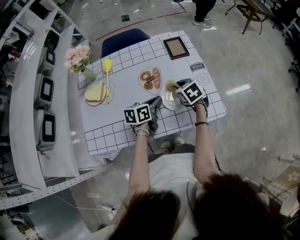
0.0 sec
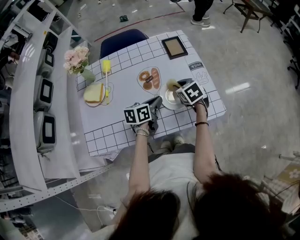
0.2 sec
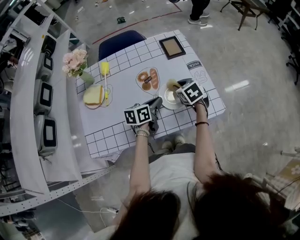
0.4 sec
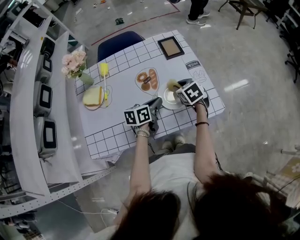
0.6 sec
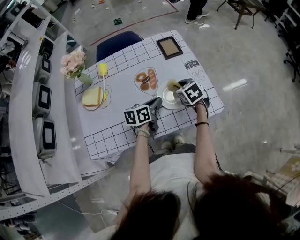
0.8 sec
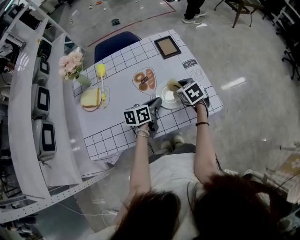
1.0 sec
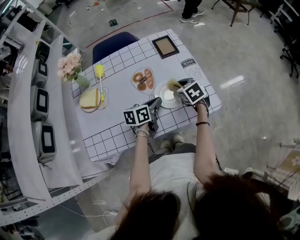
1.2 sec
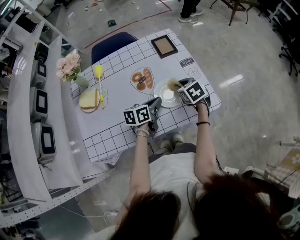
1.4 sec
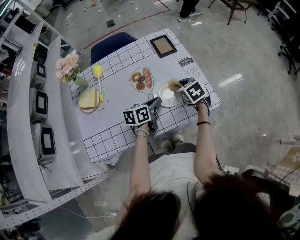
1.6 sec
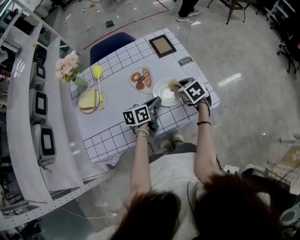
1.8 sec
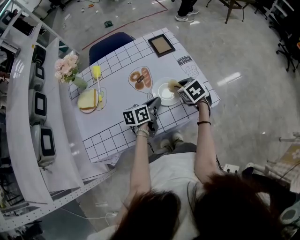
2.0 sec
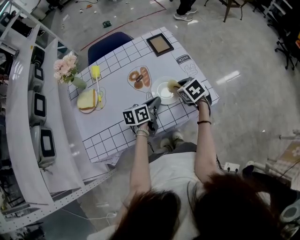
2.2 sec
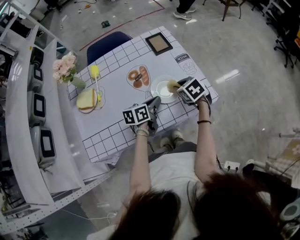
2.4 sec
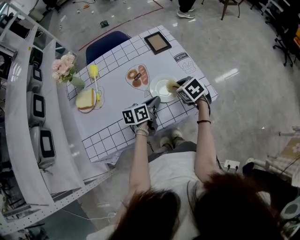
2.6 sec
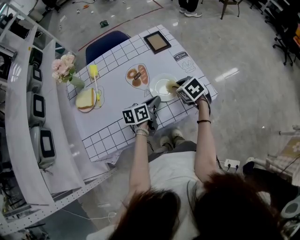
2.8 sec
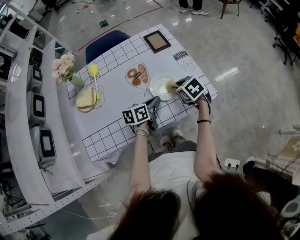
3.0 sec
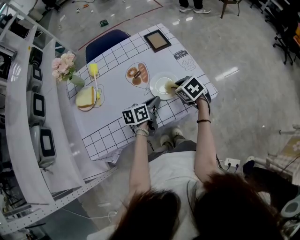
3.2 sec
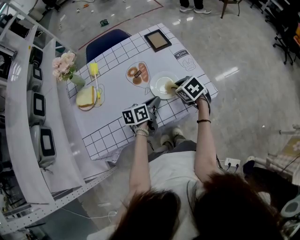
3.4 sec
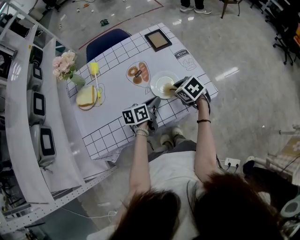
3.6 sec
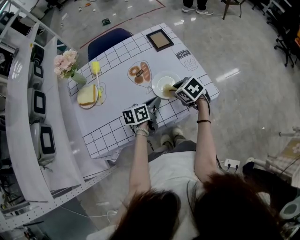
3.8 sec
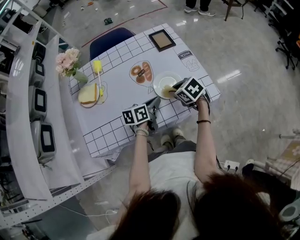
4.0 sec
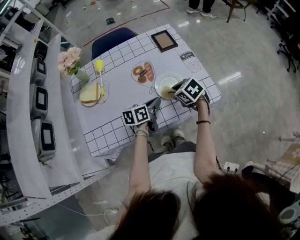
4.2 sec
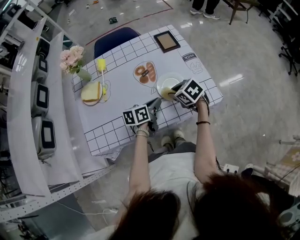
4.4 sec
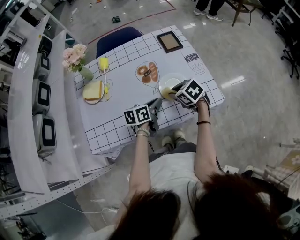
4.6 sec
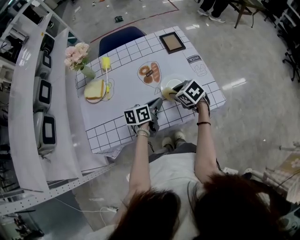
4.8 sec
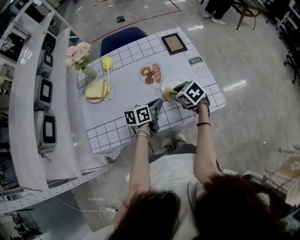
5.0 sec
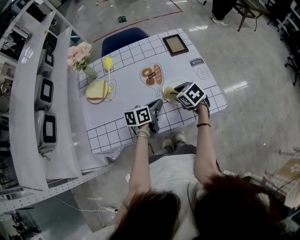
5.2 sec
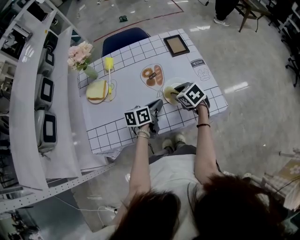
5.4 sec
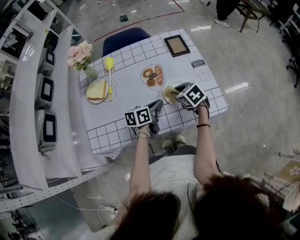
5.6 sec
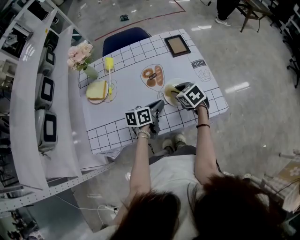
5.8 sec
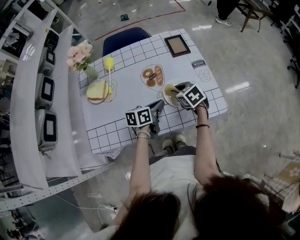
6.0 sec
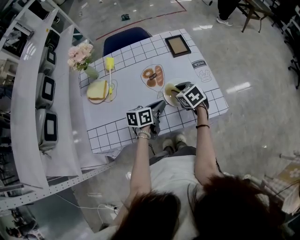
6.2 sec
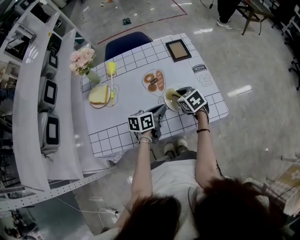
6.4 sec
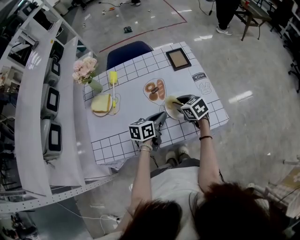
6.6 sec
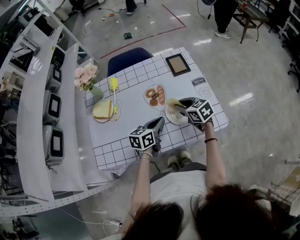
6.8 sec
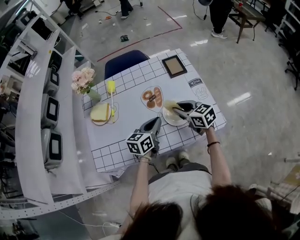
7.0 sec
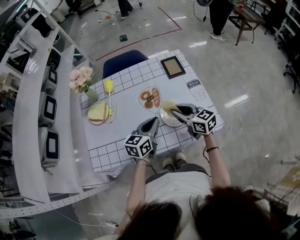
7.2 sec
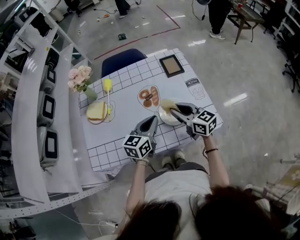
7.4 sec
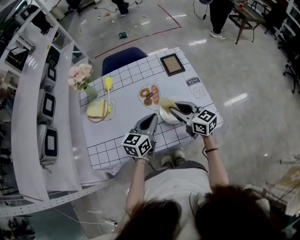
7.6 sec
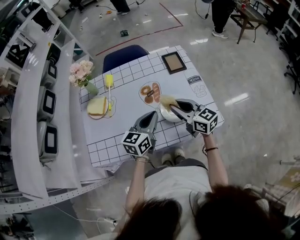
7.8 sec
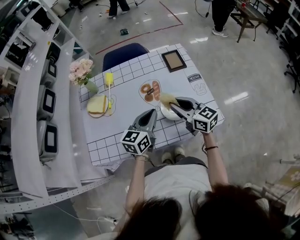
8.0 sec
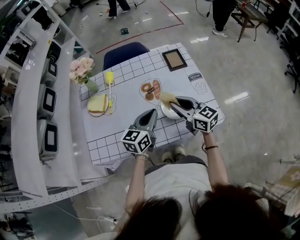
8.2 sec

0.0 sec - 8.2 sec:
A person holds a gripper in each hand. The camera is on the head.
0.0 sec - 1.6 sec: The right gripper changes place by some 5 cm.
1.6 sec - 3.2 sec: The right gripper moves backward, approximately 5 cm.
3.2 sec - 5.0 sec: The right gripper heads to the left, covering approximately 5 cm.
5.0 sec - 6.6 sec: There are only small adjustments of the grippers.
6.6 sec - 8.2 sec: The grippers both shift upward by some 10 cm. The left gripper changes its angle by about 30 degrees, while the right gripper points its fingers approximately 30 degrees further upward.

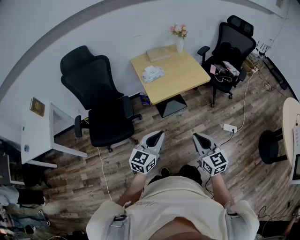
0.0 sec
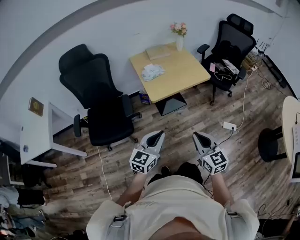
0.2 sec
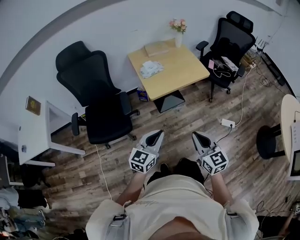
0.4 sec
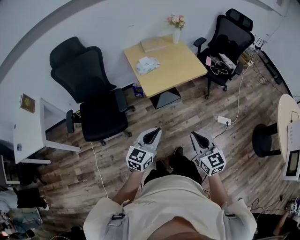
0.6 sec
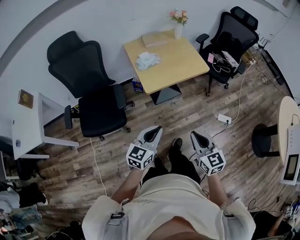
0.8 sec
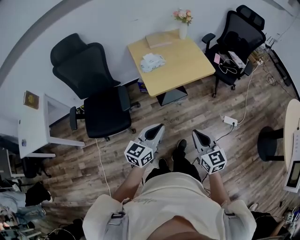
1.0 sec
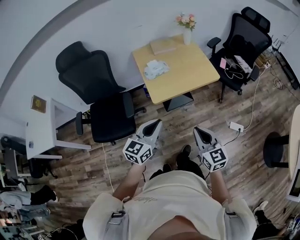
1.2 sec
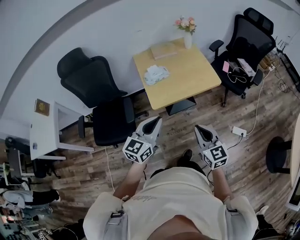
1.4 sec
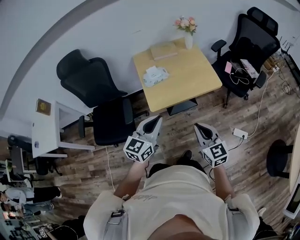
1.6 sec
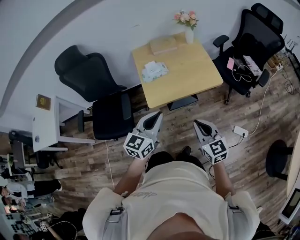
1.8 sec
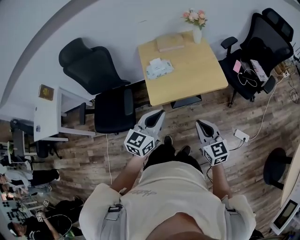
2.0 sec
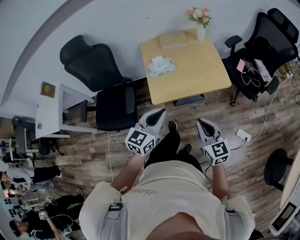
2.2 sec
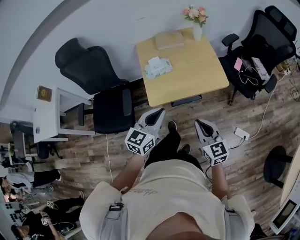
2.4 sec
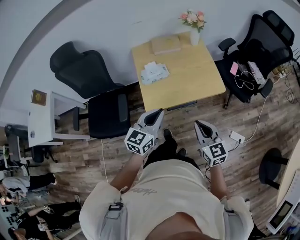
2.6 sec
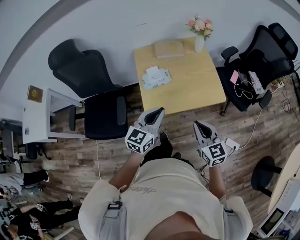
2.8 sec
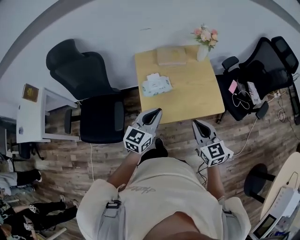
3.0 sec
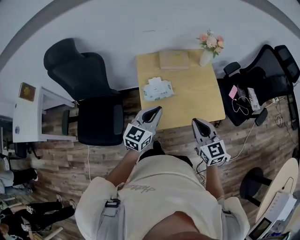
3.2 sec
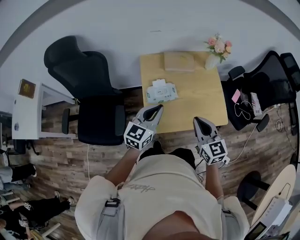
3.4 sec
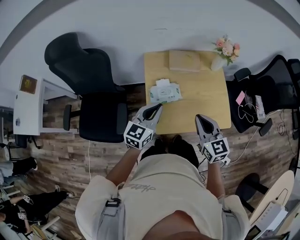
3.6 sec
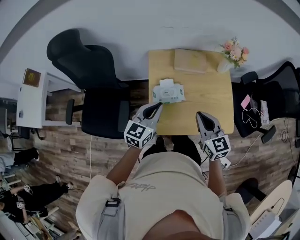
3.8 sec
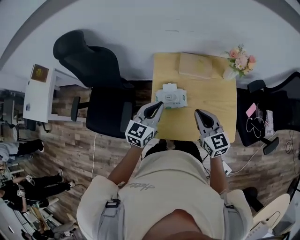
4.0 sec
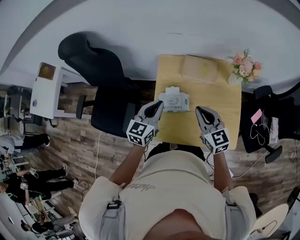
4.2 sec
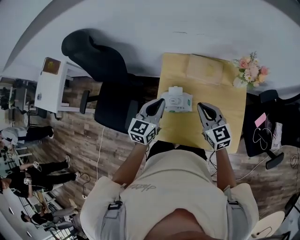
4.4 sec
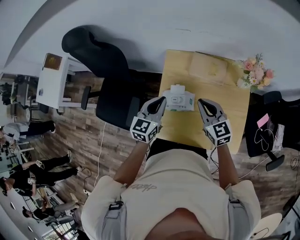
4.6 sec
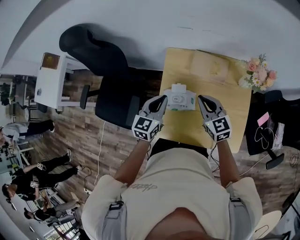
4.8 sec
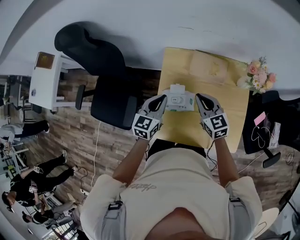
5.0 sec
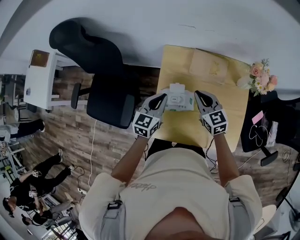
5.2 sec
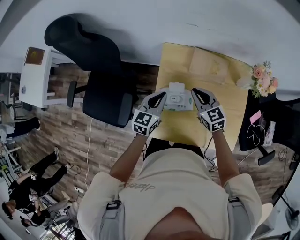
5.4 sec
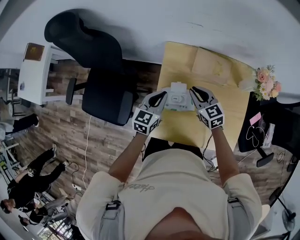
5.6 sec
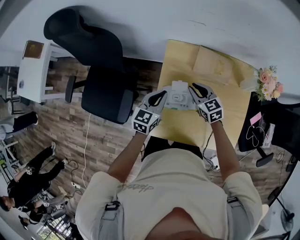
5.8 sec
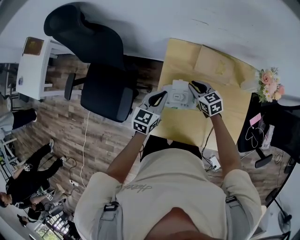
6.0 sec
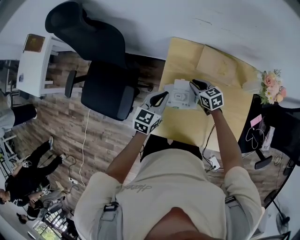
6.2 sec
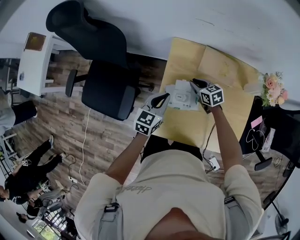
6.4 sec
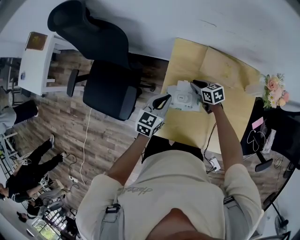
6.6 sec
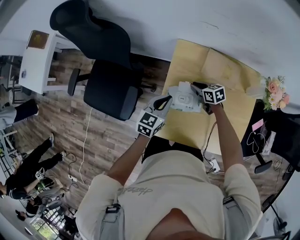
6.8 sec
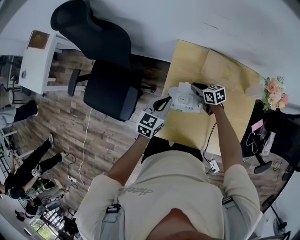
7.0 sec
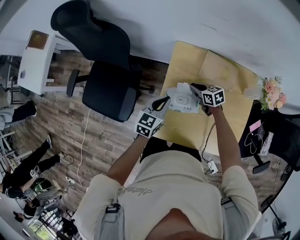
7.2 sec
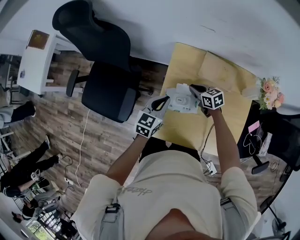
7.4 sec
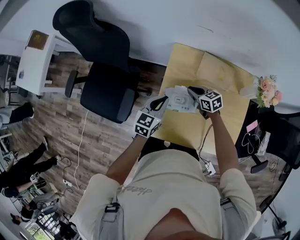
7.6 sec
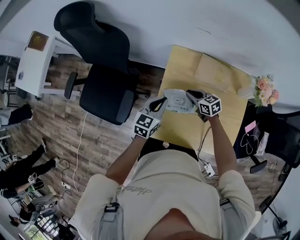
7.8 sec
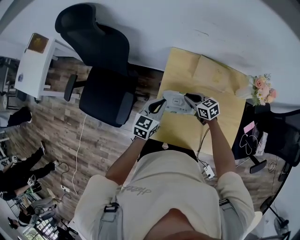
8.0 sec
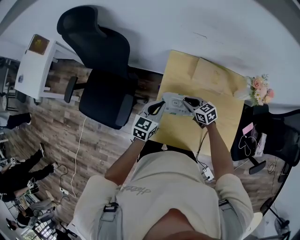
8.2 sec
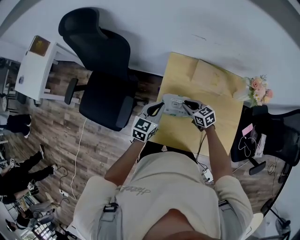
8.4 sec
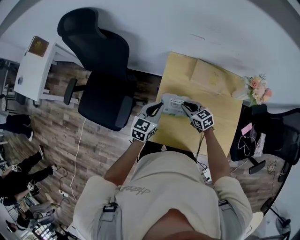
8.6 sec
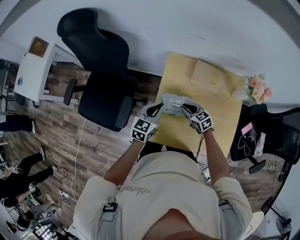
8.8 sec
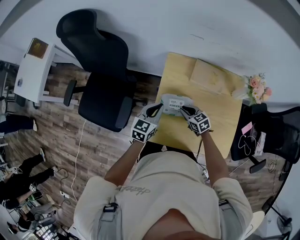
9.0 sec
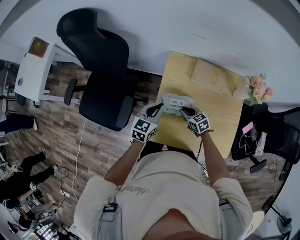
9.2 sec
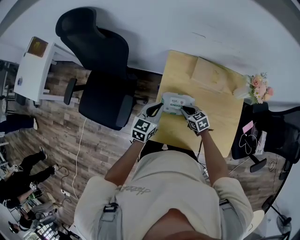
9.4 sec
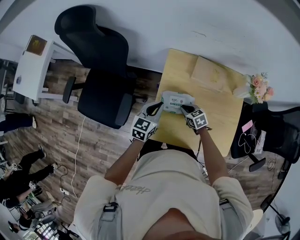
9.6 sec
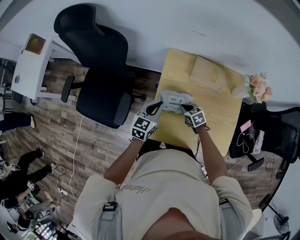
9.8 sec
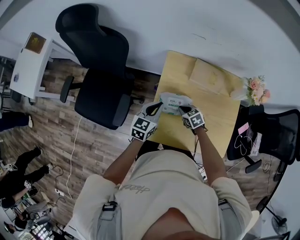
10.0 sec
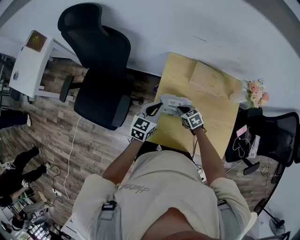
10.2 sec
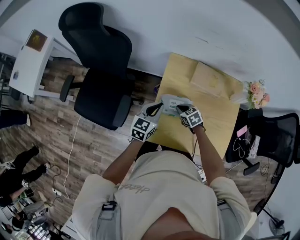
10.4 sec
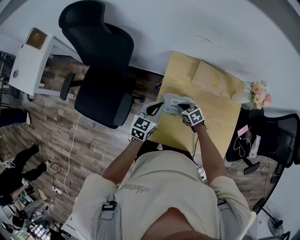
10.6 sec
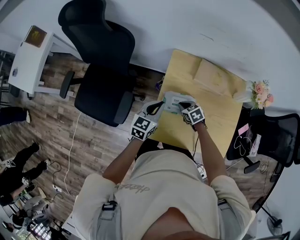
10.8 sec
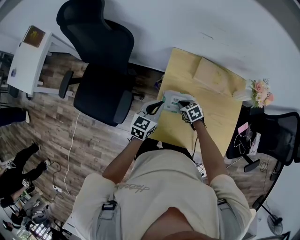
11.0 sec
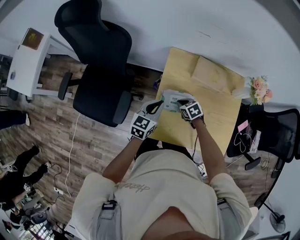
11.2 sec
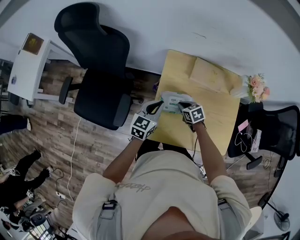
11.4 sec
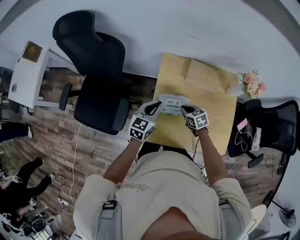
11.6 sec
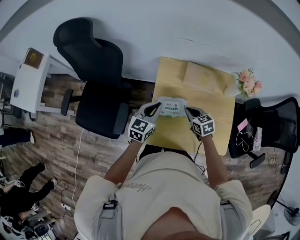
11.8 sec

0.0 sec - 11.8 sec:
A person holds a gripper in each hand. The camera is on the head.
0.0 sec - 1.4 sec: The two grippers go about 20 cm forward.
1.4 sec - 3.0 sec: The grippers both shift forward by approximately 25 cm.
3.0 sec - 4.4 sec: Both grippers move forward, approximately 25 cm. The right gripper swivels roughly 20 degrees, while the left gripper rotates roughly 30 degrees.
4.4 sec - 6.0 sec: The left gripper moves downward, some 10 cm, while the right gripper moves downward, forward and to the left, approximately 25 cm, and swivels some 20 degrees.
7.4 sec - 8.8 sec: The right gripper goes about 10 cm backward.
8.8 sec - 10.4 sec: There are only small adjustments of the grippers.
10.4 sec - 11.8 sec: The right gripper heads upward and to the right, covering approximately 10 cm.

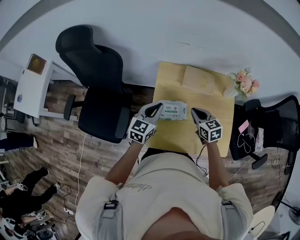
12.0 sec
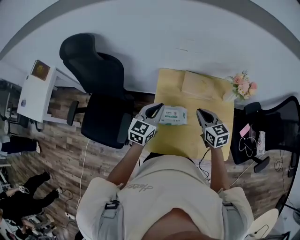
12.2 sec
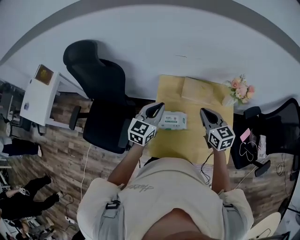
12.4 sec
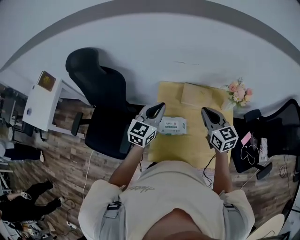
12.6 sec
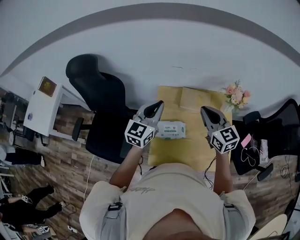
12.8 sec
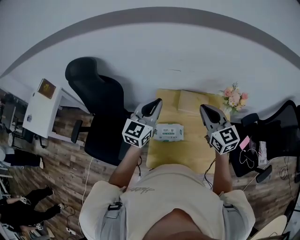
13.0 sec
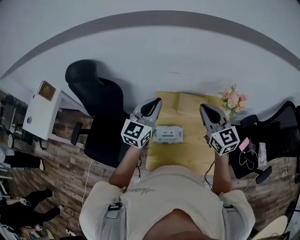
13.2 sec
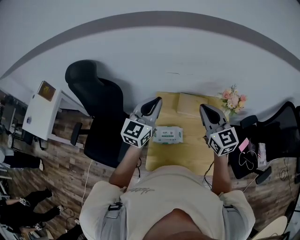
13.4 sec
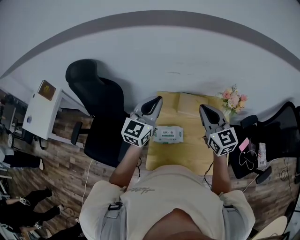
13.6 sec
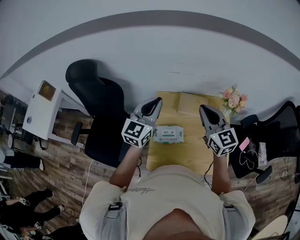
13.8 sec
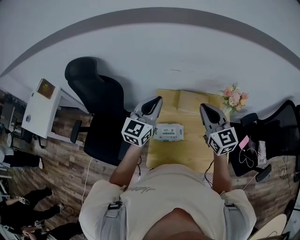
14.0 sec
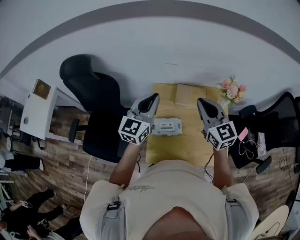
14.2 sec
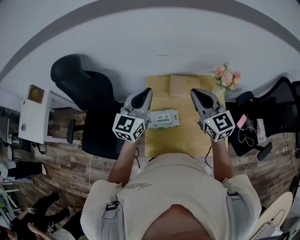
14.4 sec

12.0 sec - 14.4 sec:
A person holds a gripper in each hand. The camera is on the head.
12.0 sec - 13.2 sec: The grippers both shift upward by approximately 25 cm. The left gripper changes its angle by some 20 degrees. The right gripper swivels about 30 degrees.
13.2 sec - 14.4 sec: There are only small adjustments of the grippers.

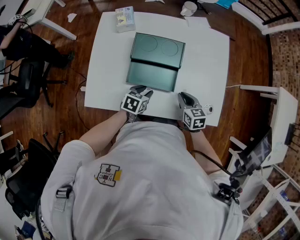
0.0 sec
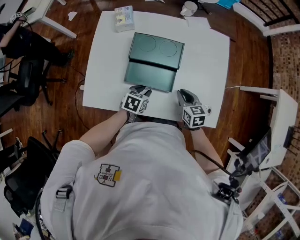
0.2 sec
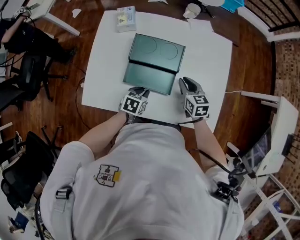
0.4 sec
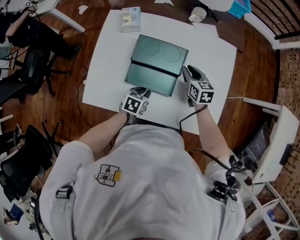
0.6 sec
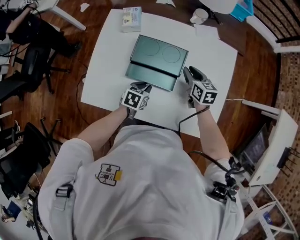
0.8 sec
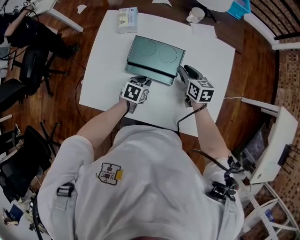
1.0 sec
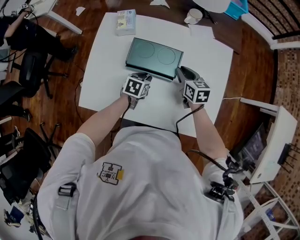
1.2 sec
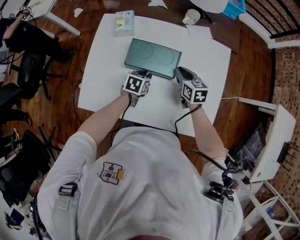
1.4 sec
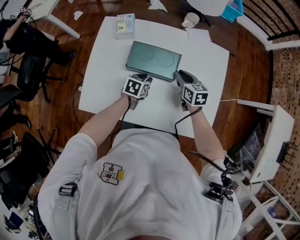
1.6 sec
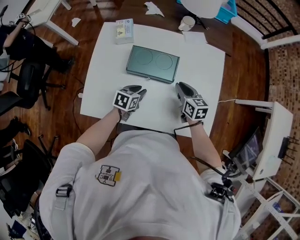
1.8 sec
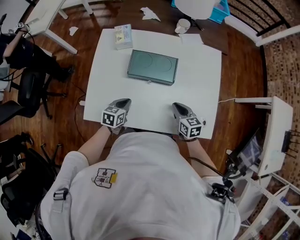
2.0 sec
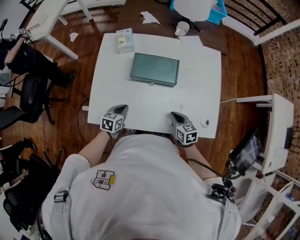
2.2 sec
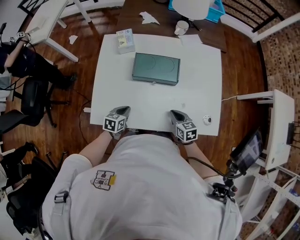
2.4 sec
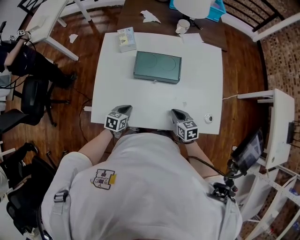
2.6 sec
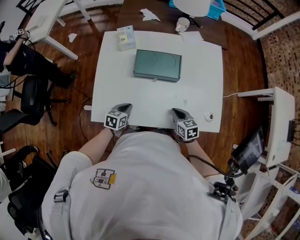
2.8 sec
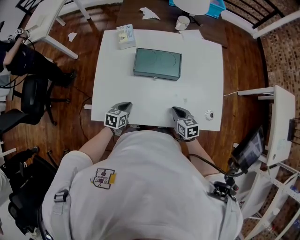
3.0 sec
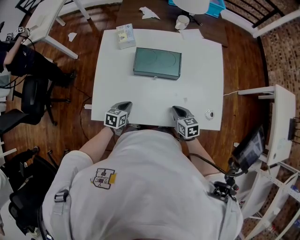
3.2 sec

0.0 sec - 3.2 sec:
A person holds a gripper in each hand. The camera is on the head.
0.0 sec - 1.6 sec: The two grippers go about 15 cm forward.
1.6 sec - 3.2 sec: The right gripper moves backward, approximately 20 cm, while the left gripper is displaced backward and to the left by roughly 20 cm.
